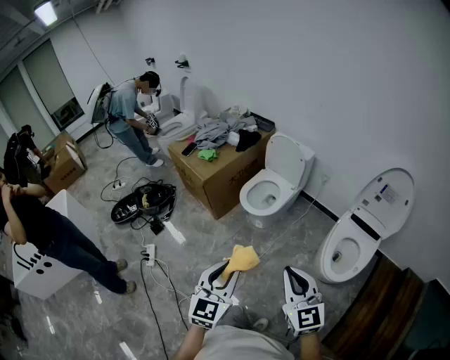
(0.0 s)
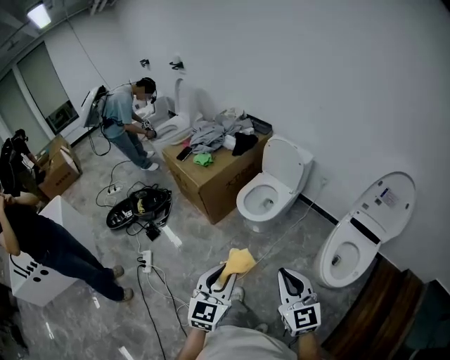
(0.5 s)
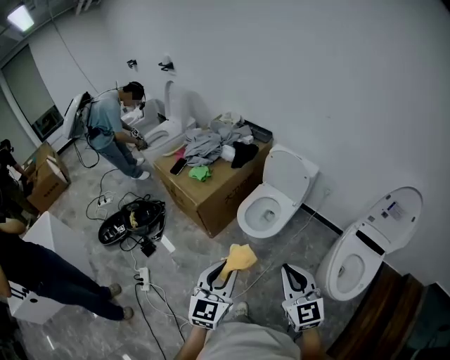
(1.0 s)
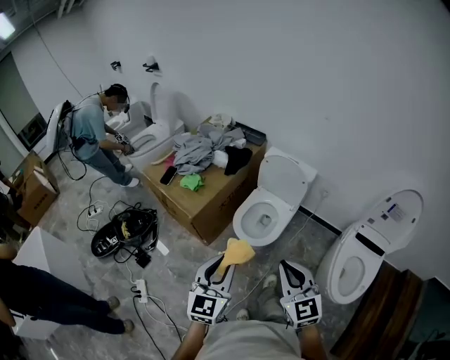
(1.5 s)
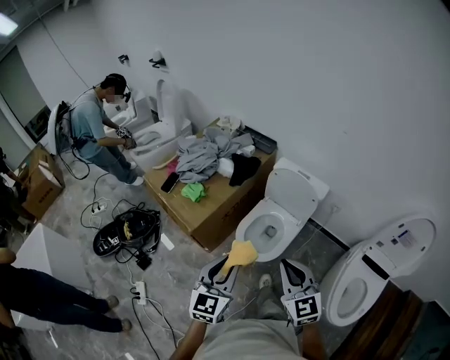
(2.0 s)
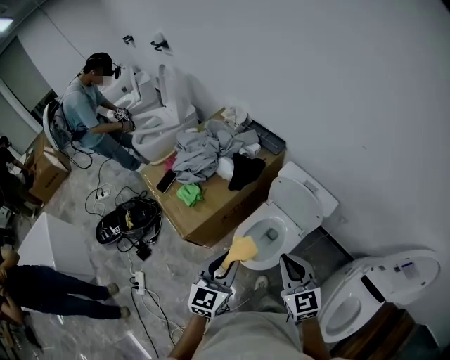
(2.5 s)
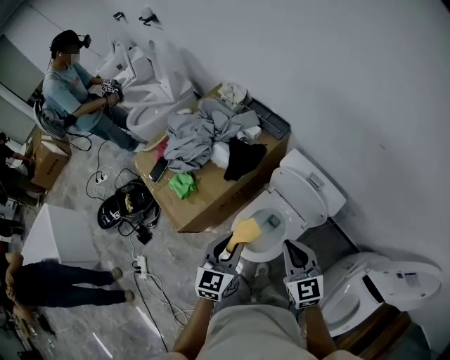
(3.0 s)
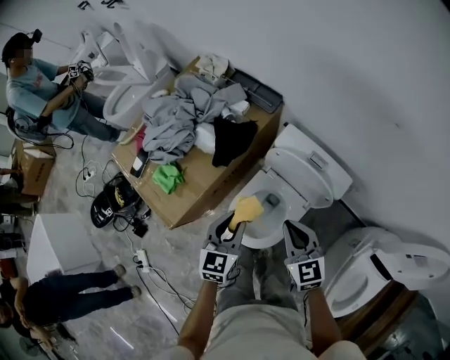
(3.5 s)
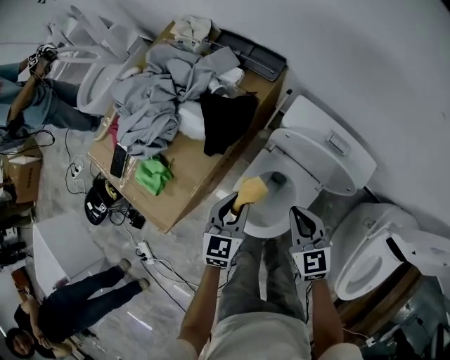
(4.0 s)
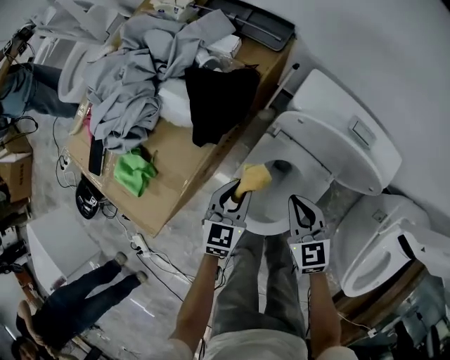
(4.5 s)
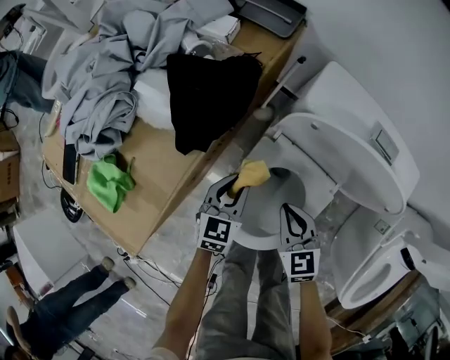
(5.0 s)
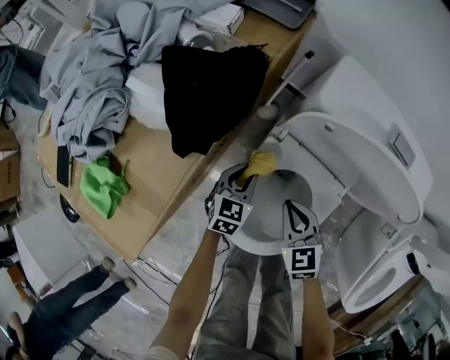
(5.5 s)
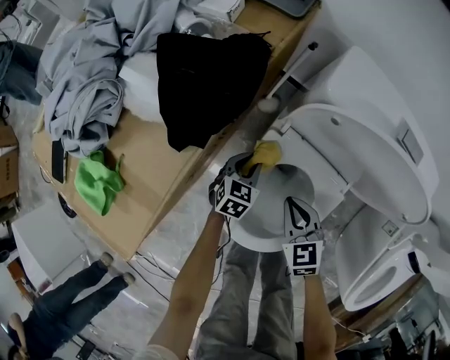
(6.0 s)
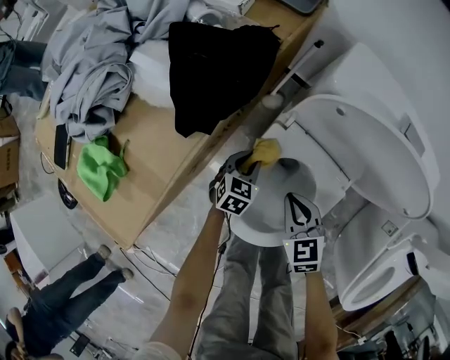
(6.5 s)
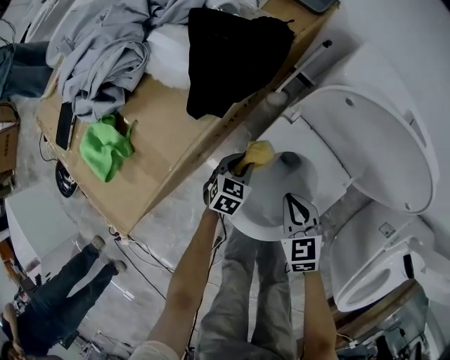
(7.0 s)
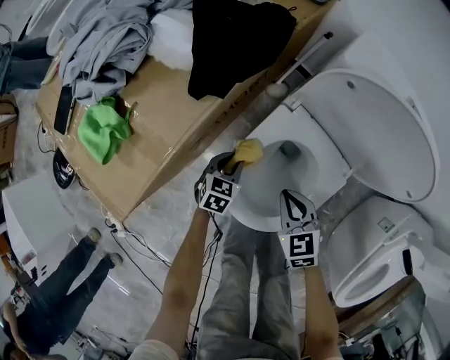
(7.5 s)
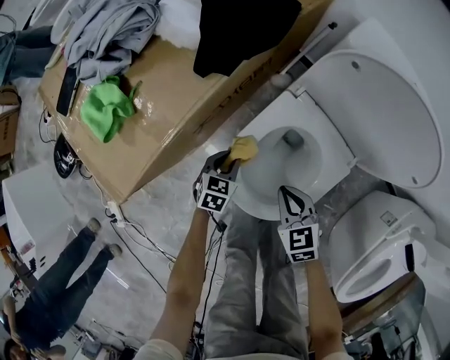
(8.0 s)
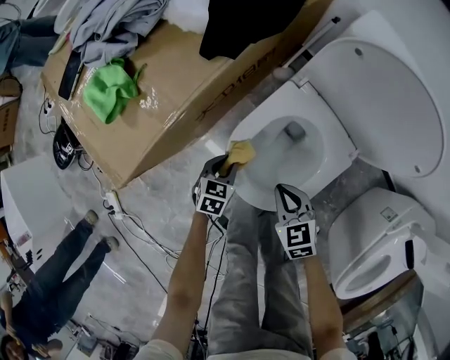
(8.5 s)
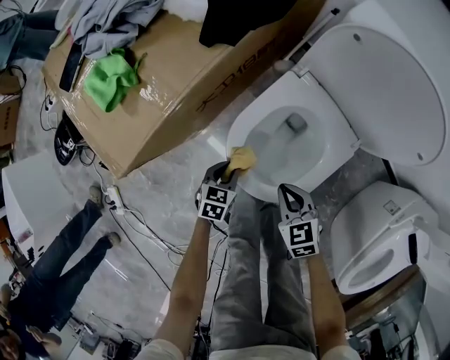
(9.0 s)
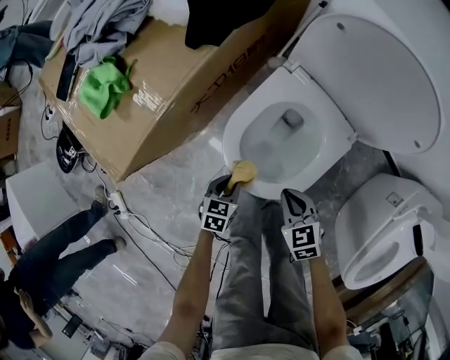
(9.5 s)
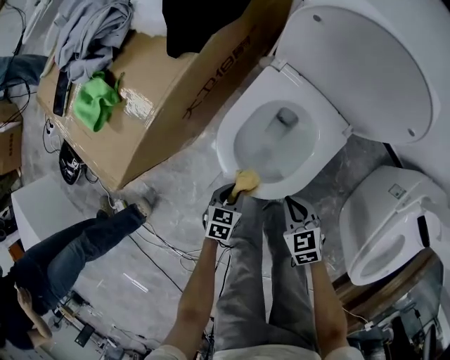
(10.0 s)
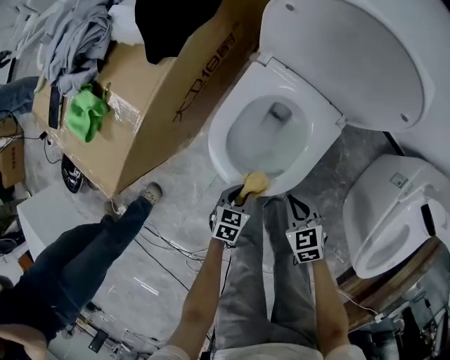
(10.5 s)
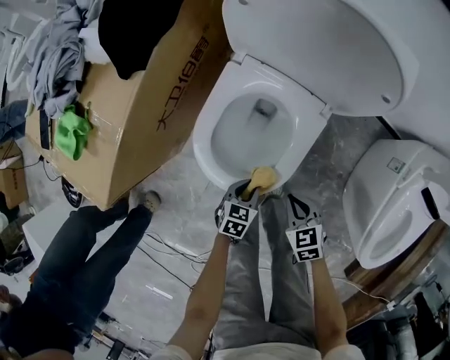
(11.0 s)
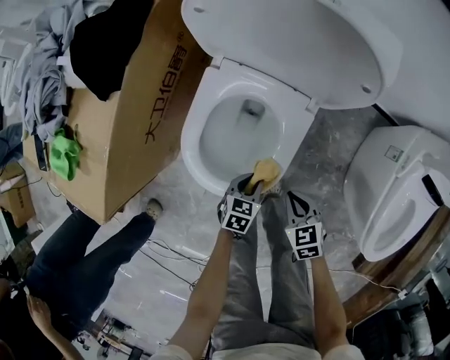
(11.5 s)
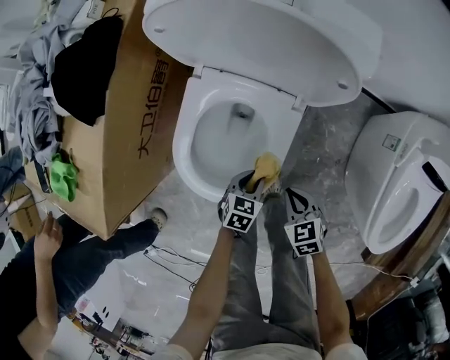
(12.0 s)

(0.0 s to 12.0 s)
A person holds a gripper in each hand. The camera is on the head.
0.0 s - 2.0 s: Both grippers are carried forward, roughly 40 cm.
2.0 s - 4.0 s: Both grippers travel together forward and downward, some 50 cm. The right gripper swivels approximately 20 degrees. The left gripper swivels roughly 20 degrees.
4.0 s - 6.0 s: The two grippers go approximately 30 cm downward. The left gripper rotates approximately 20 degrees.
6.0 s - 8.0 s: The right gripper shifts approximately 10 cm backward, while the left gripper goes about 15 cm backward and to the left.
8.0 s - 10.0 s: Both grippers move backward, some 15 cm.
10.0 s - 12.0 s: The left gripper moves to the right and forward, some 20 cm, and swivels about 20 degrees, while the right gripper is displaced to the right by roughly 10 cm.

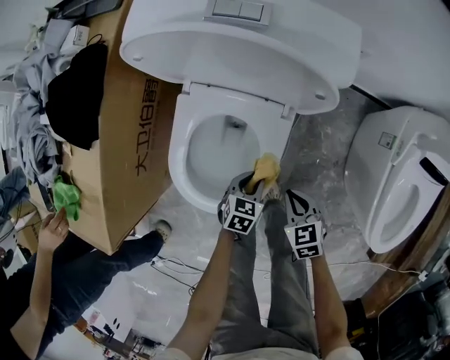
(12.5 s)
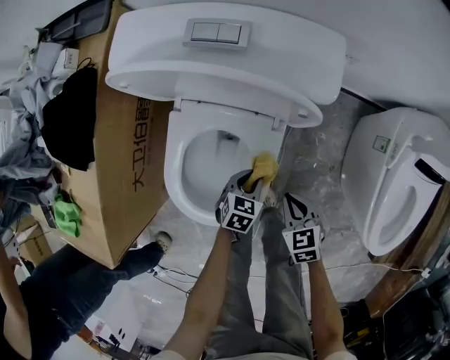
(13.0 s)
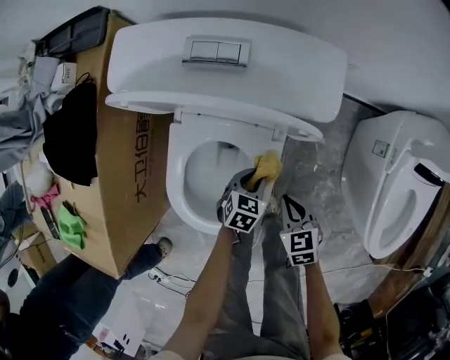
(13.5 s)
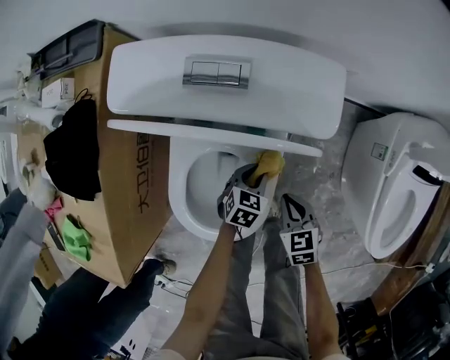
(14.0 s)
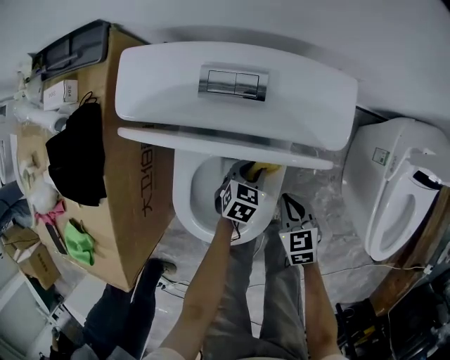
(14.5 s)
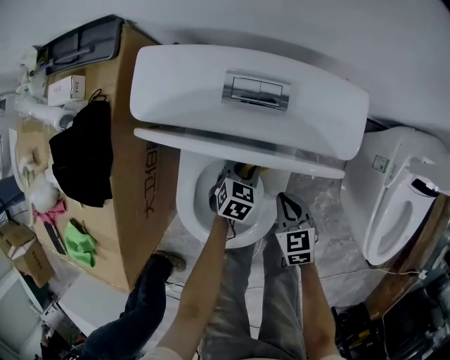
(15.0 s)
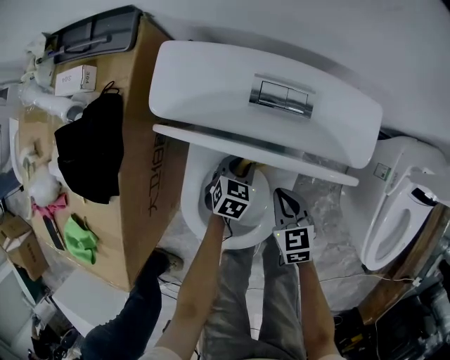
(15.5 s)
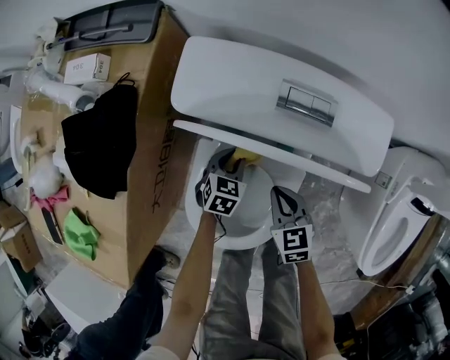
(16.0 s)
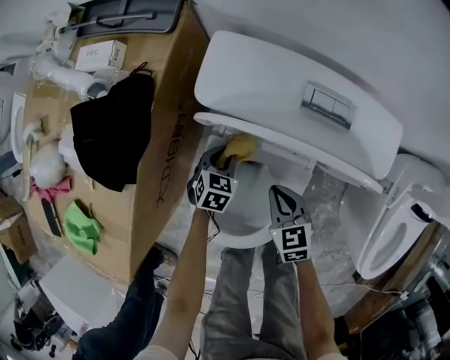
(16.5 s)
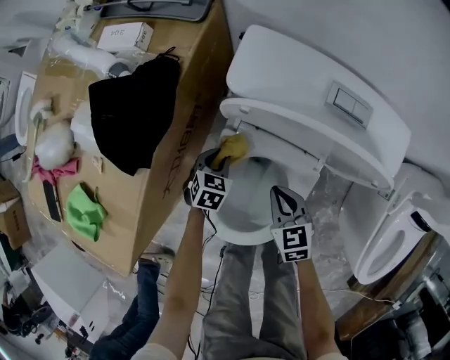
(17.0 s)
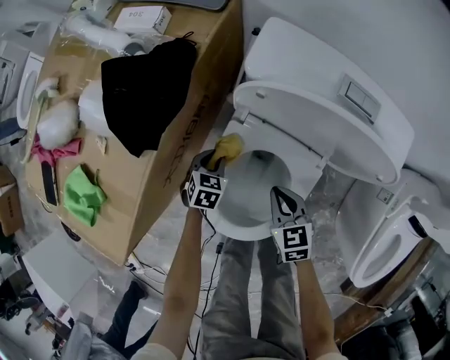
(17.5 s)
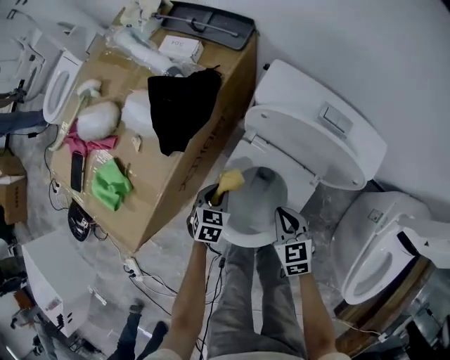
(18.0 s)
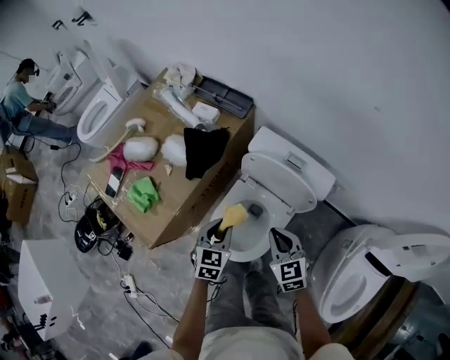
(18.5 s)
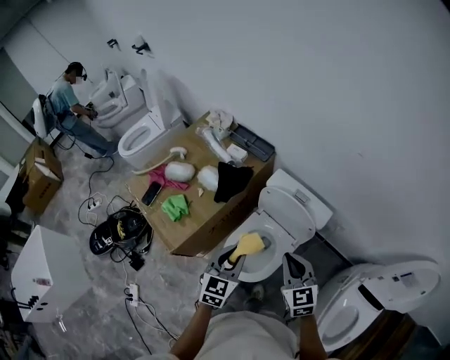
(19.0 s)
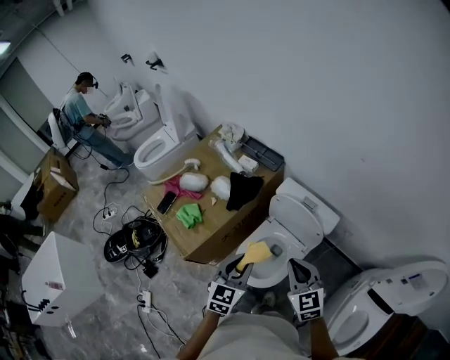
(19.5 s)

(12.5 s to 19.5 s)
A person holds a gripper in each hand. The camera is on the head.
12.5 s - 14.5 s: The right gripper moves forward, about 10 cm, while the left gripper goes about 15 cm forward.
14.5 s - 16.0 s: The right gripper travels to the left and forward by roughly 10 cm. The left gripper heads to the left, covering about 15 cm.
16.0 s - 17.5 s: The right gripper goes approximately 5 cm to the left, while the left gripper heads to the left and backward, covering roughly 15 cm.
17.5 s - 19.5 s: The two grippers go about 50 cm upward. The left gripper points its fingers some 40 degrees further upward; the right gripper swivels approximately 30 degrees.

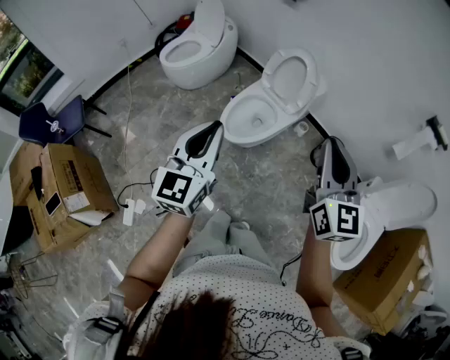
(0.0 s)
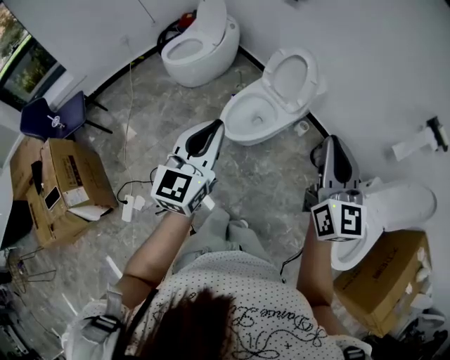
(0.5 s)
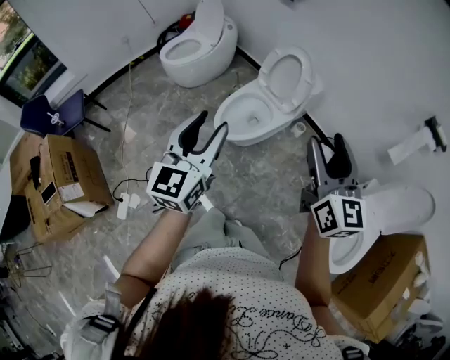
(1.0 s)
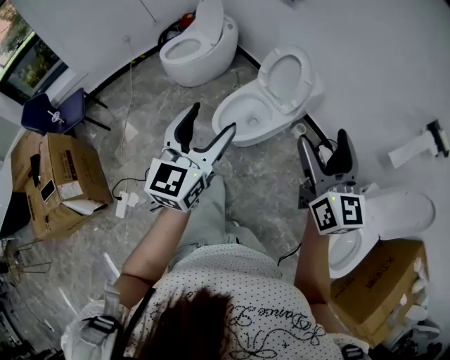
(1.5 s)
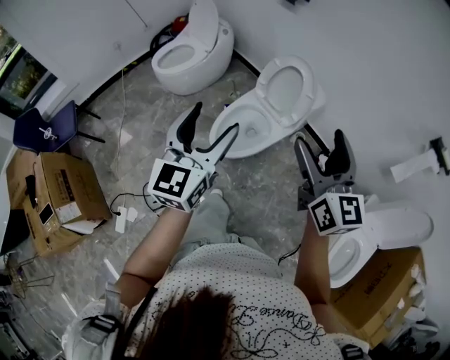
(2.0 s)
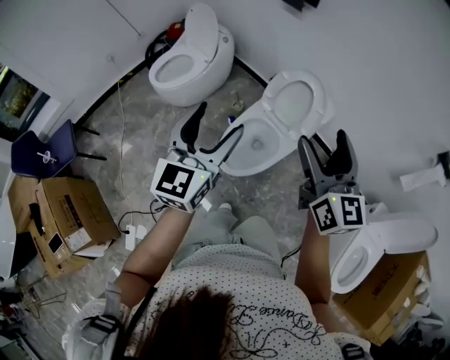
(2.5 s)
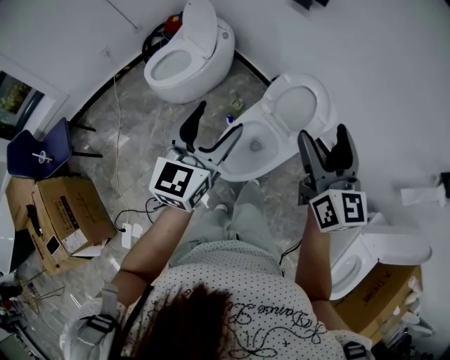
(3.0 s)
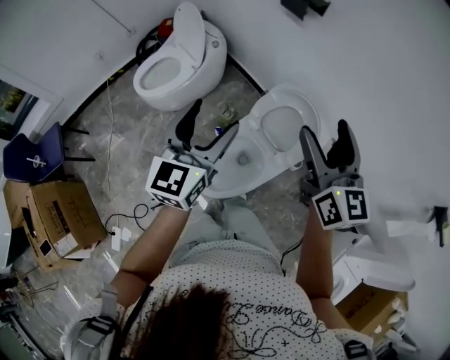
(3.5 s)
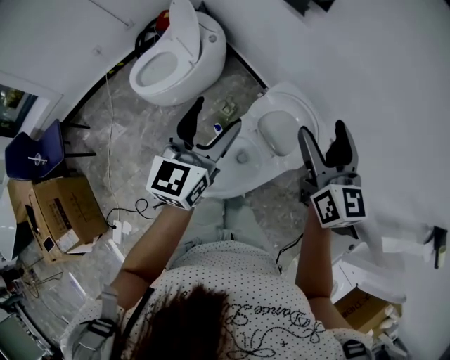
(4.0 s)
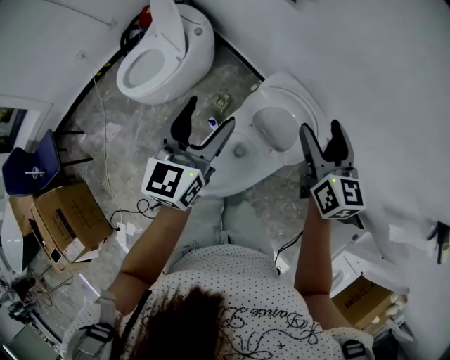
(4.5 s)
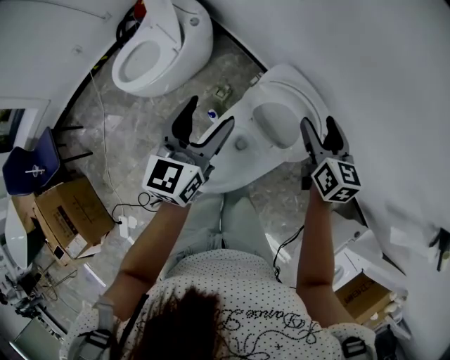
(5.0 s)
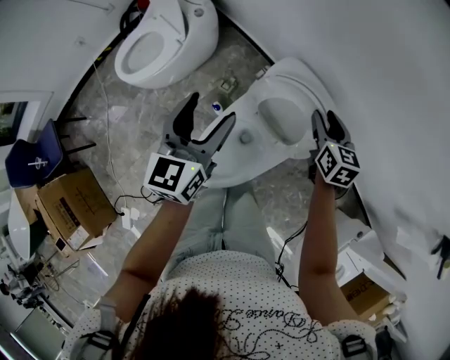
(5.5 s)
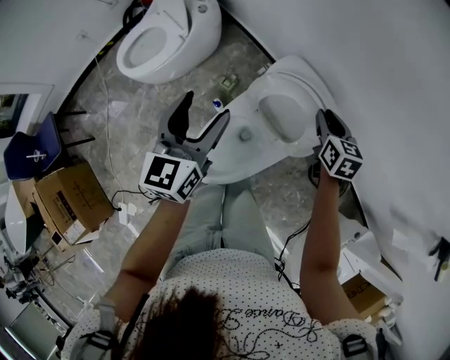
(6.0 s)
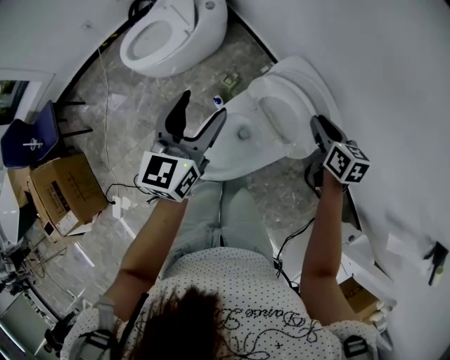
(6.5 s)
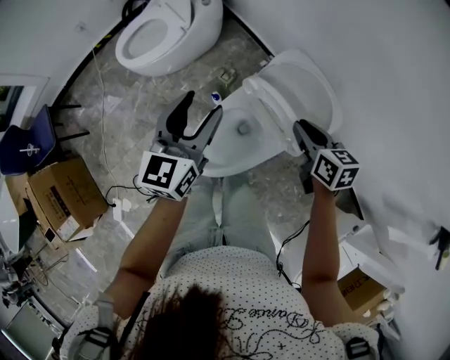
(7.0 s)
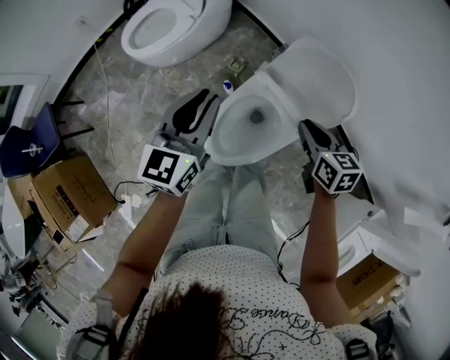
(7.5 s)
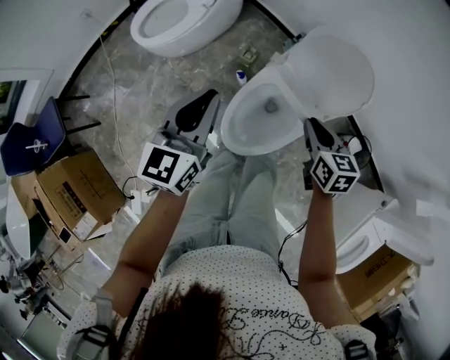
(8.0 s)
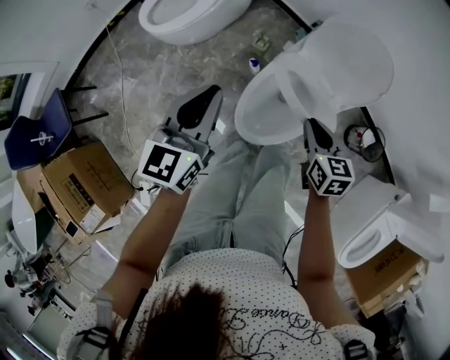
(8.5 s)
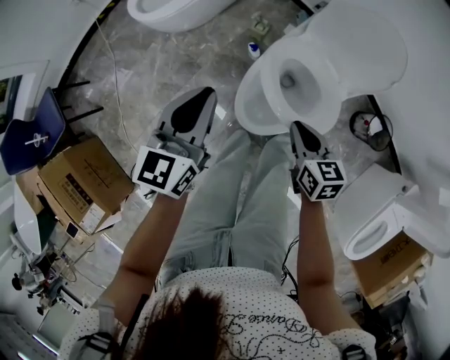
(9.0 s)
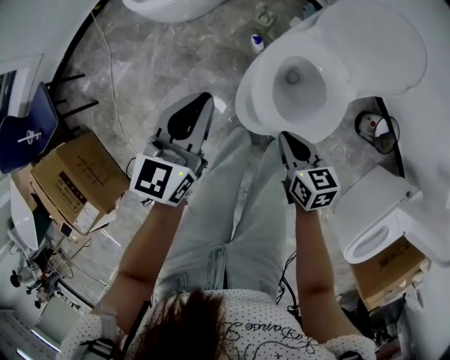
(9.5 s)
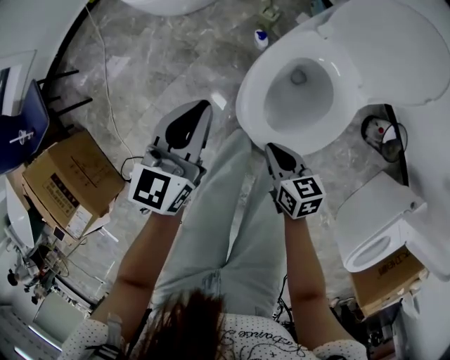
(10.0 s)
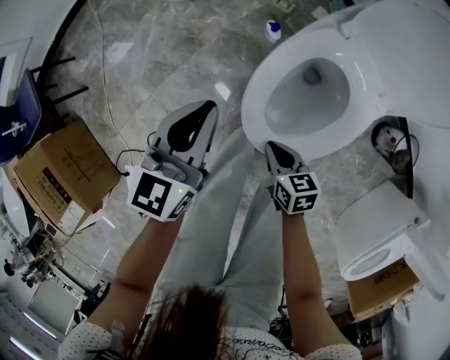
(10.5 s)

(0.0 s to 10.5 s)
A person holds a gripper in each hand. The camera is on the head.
0.0 s - 2.0 s: The two grippers go approximately 10 cm forward. The left gripper opens; the right gripper opens its fingers.
2.0 s - 4.0 s: The two grippers go about 40 cm forward.
4.0 s - 6.5 s: The left gripper moves downward, about 10 cm. Meanwhile the right gripper moves downward, roughly 25 cm, points its fingers about 30 degrees further downward, and closes up.
6.5 s - 8.5 s: Both grippers move to the left and backward, approximately 25 cm. The left gripper closes its fingers.
8.5 s - 10.5 s: The left gripper moves downward, approximately 25 cm; the right gripper heads downward and to the left, covering some 30 cm, and turns by roughly 30 degrees.
